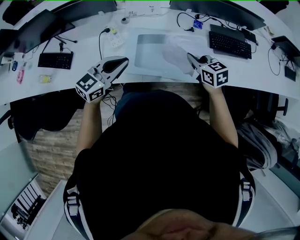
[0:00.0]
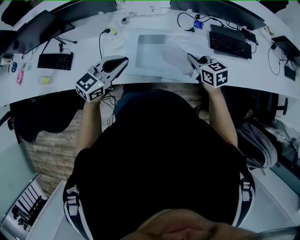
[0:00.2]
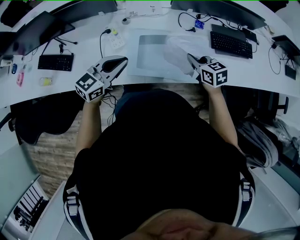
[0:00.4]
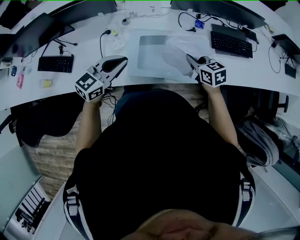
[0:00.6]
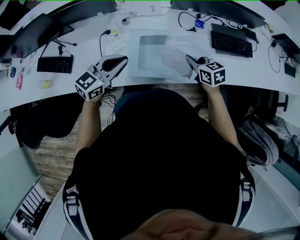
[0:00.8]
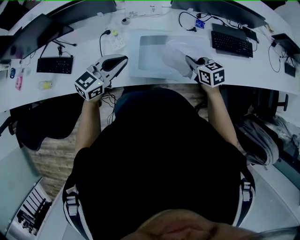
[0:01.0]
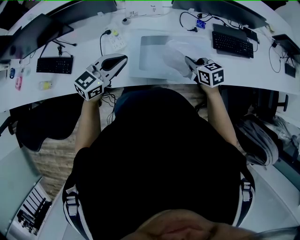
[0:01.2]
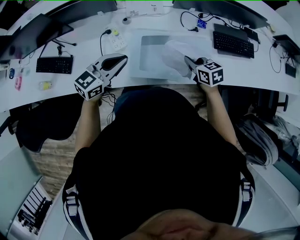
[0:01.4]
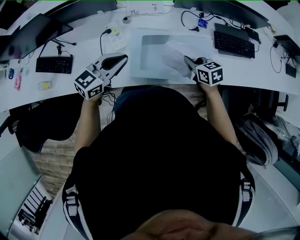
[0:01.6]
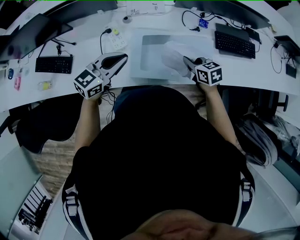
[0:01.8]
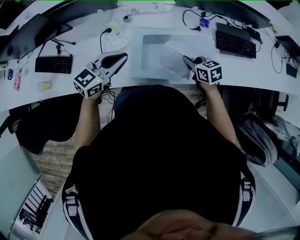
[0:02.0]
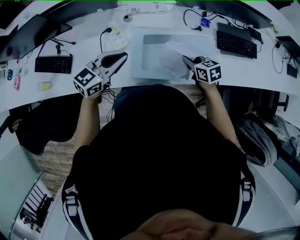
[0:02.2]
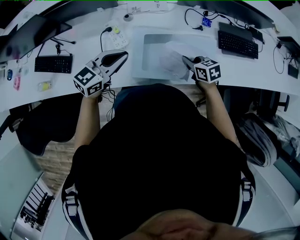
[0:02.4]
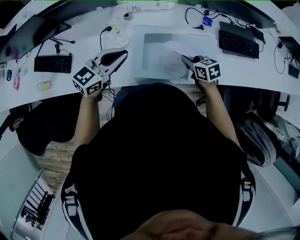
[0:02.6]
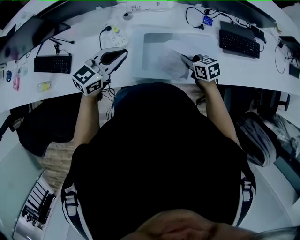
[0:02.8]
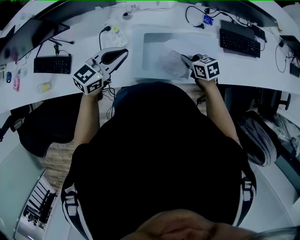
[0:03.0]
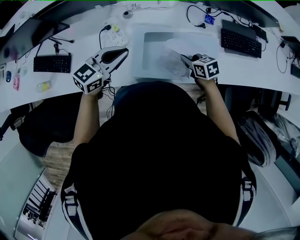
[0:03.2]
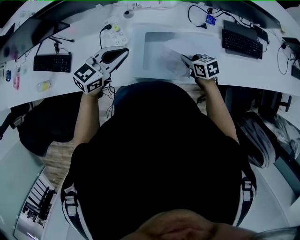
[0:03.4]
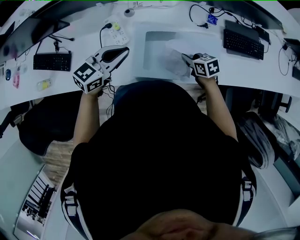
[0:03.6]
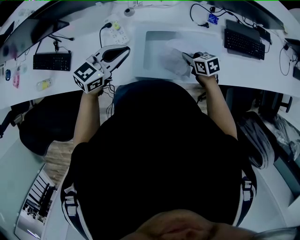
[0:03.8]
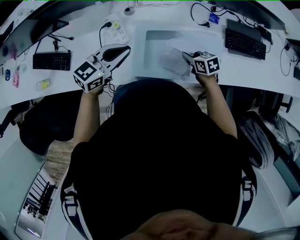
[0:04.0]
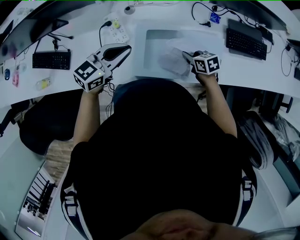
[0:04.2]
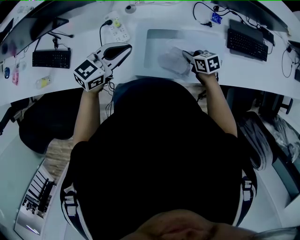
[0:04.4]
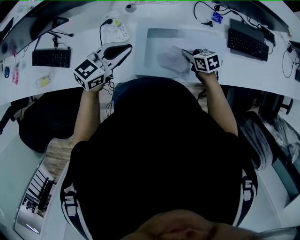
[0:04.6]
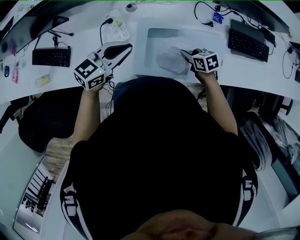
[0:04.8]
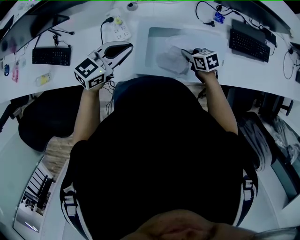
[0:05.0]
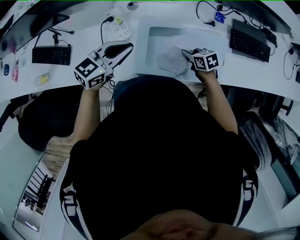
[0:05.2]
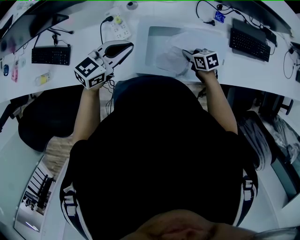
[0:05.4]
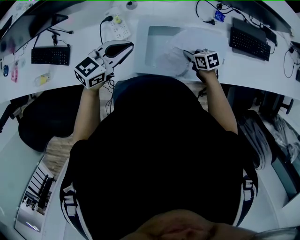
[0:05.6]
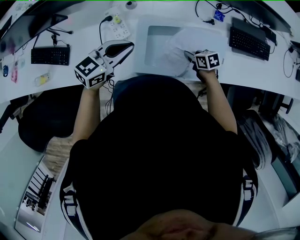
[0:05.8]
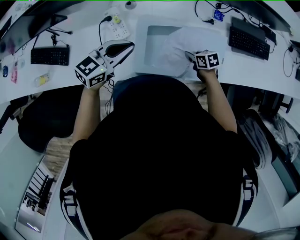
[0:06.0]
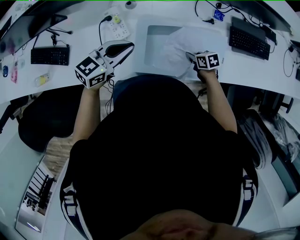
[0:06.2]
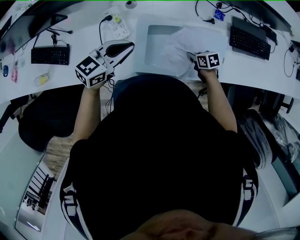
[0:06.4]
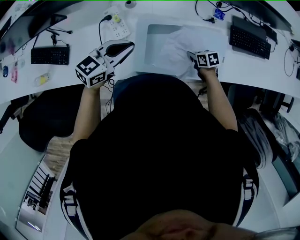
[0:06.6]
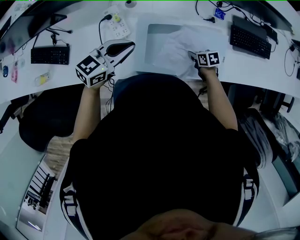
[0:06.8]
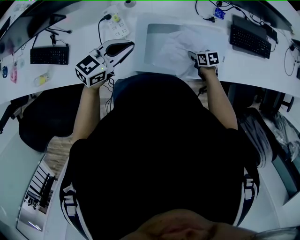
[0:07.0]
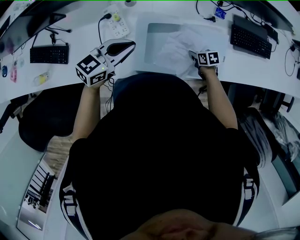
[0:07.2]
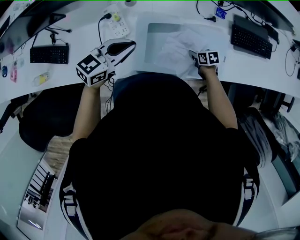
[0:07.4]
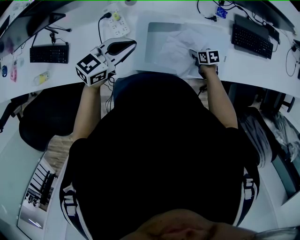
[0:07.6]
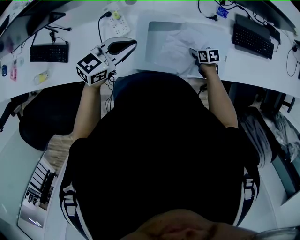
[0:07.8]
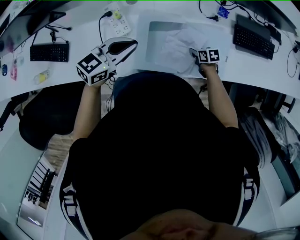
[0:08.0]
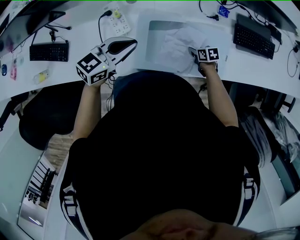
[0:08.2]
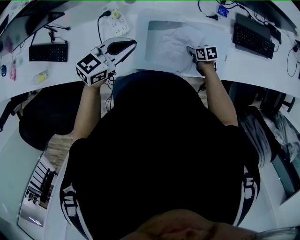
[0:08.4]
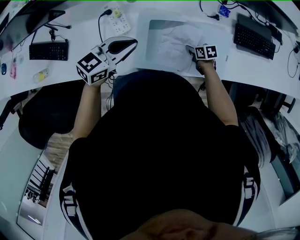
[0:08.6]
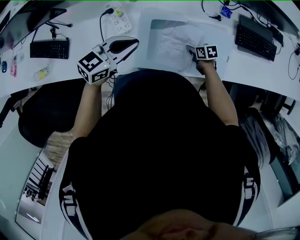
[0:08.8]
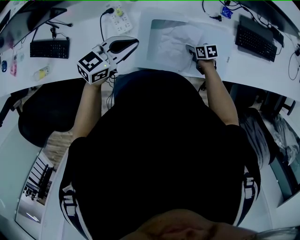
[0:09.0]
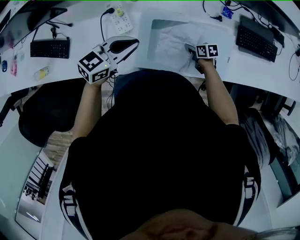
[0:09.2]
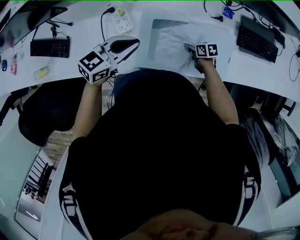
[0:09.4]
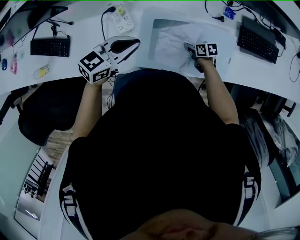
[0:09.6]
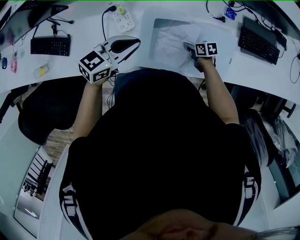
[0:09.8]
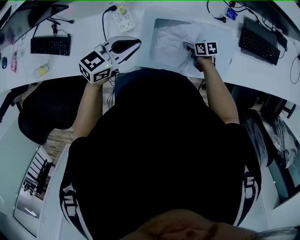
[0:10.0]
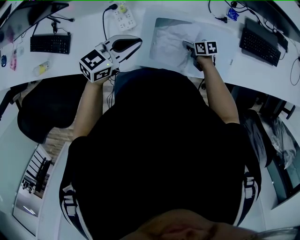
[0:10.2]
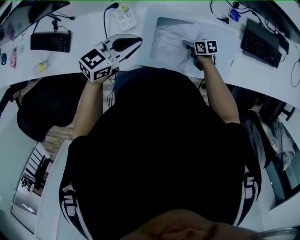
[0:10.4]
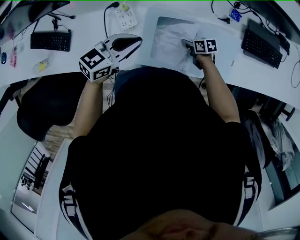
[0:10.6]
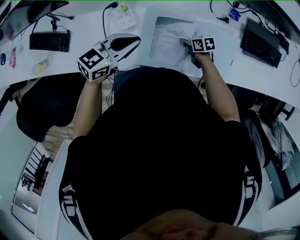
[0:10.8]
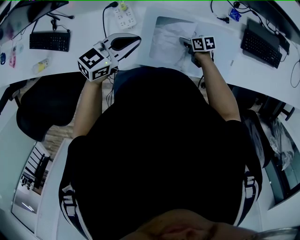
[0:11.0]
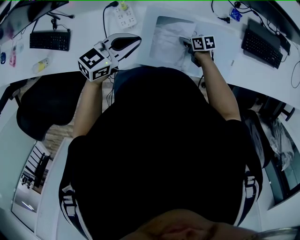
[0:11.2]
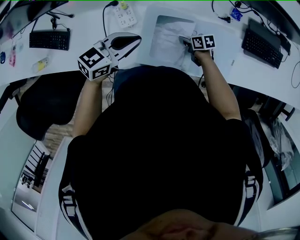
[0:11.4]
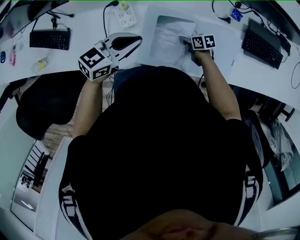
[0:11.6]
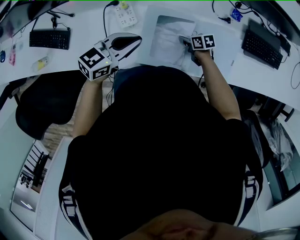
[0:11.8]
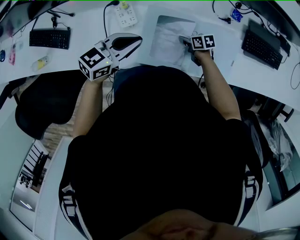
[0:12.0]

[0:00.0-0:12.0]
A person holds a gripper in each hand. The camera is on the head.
0.0 to 1.6 s: The left gripper travels to the left and forward by some 5 cm. Meanwhile the right gripper travels downward by about 5 cm.
1.6 to 3.0 s: The right gripper is displaced downward by roughly 5 cm; the left gripper is displaced forward by some 5 cm.
3.0 to 4.4 s: The right gripper travels downward by about 5 cm.
4.4 to 6.0 s: The right gripper travels downward by approximately 5 cm.
6.0 to 7.6 s: The right gripper moves downward, approximately 5 cm.
7.6 to 9.0 s: The grippers stay close to where they were, moving slightly.
9.0 to 10.4 s: The right gripper moves approximately 5 cm.
10.4 to 12.0 s: The grippers move only a little.

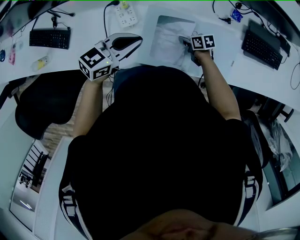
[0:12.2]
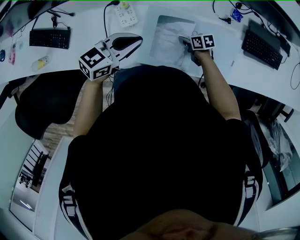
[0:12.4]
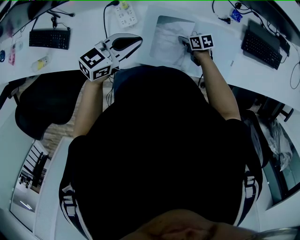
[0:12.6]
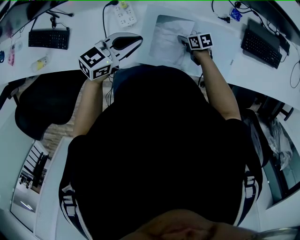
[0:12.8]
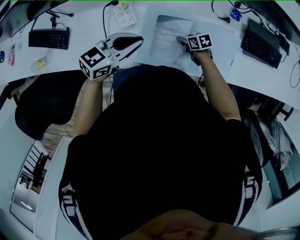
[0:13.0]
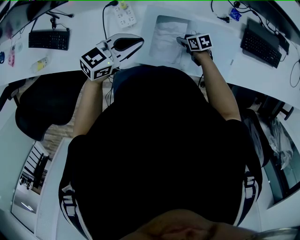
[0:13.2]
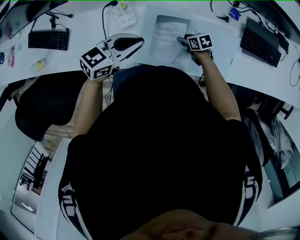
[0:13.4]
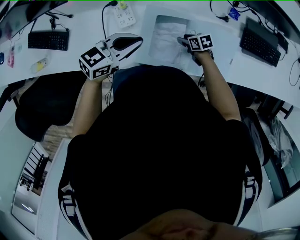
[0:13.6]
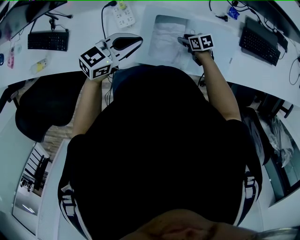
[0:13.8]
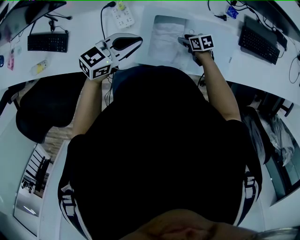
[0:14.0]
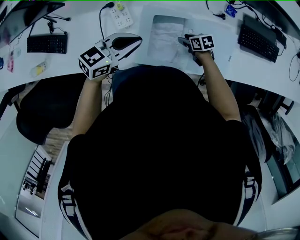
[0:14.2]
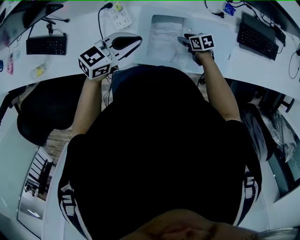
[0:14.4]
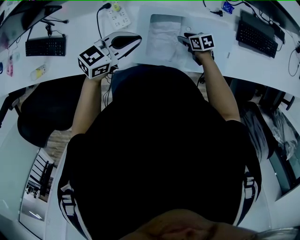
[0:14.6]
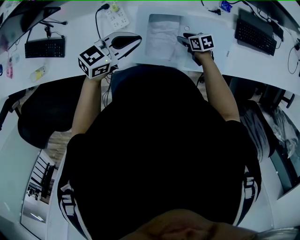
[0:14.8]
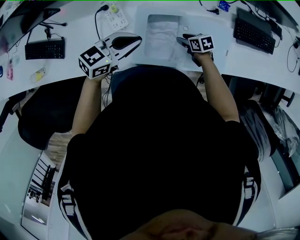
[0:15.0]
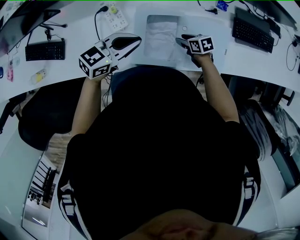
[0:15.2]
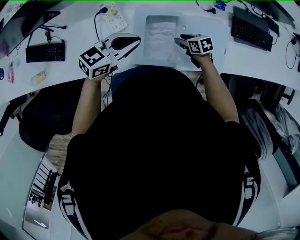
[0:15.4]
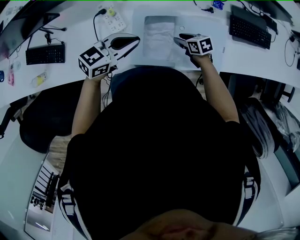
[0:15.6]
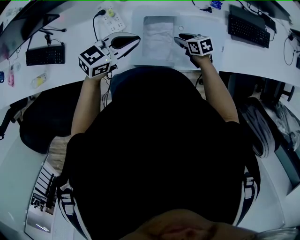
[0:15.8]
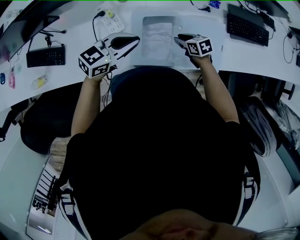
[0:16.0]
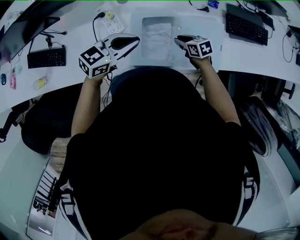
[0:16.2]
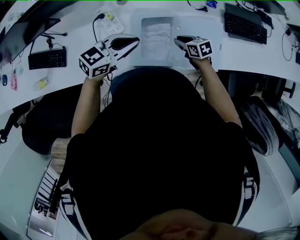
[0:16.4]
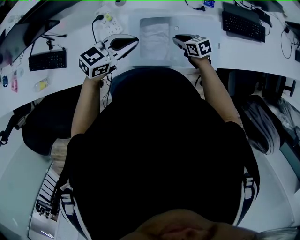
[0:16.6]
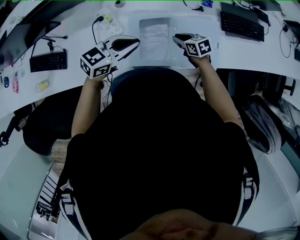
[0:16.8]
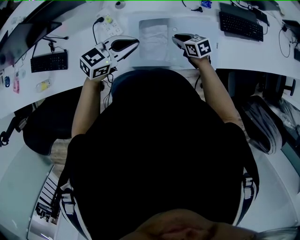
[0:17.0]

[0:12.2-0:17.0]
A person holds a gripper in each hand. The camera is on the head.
12.2 to 13.8 s: The right gripper opens up.
13.8 to 15.4 s: The right gripper heads upward, covering about 5 cm.
15.4 to 17.0 s: The right gripper goes about 10 cm upward, and closes up. Meanwhile the left gripper shifts by roughly 5 cm.

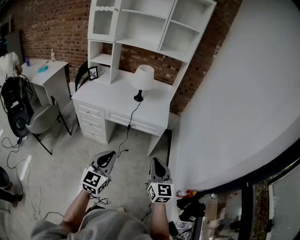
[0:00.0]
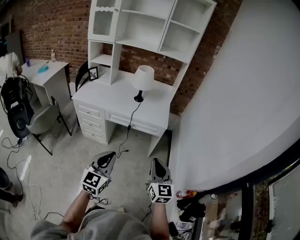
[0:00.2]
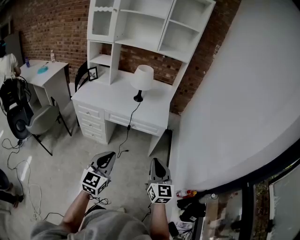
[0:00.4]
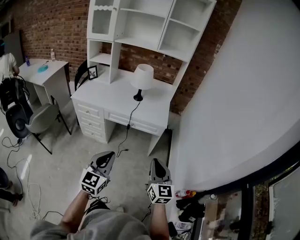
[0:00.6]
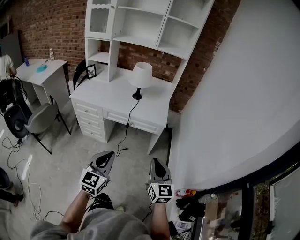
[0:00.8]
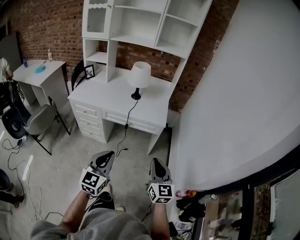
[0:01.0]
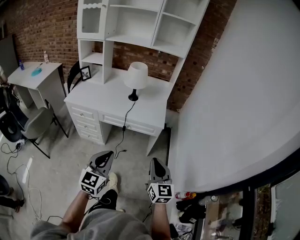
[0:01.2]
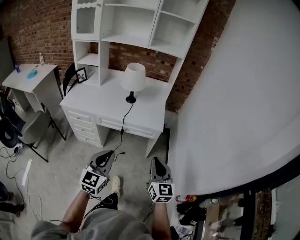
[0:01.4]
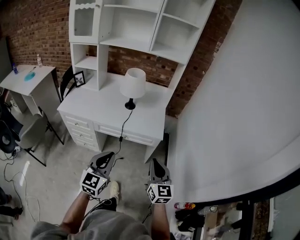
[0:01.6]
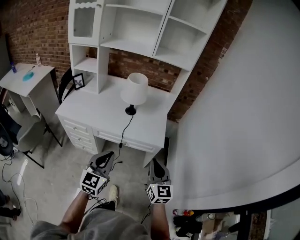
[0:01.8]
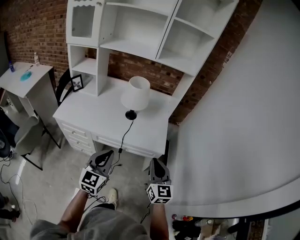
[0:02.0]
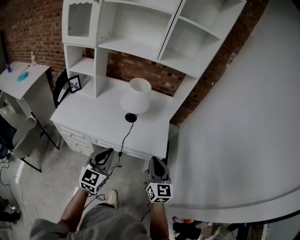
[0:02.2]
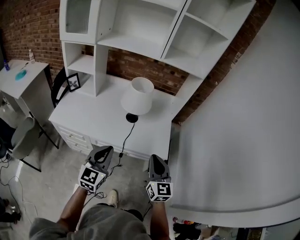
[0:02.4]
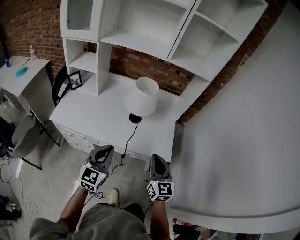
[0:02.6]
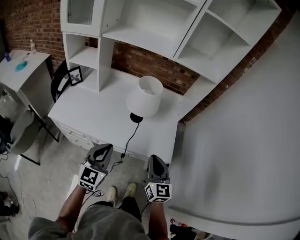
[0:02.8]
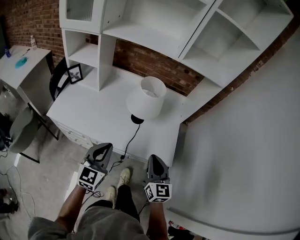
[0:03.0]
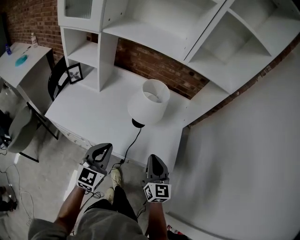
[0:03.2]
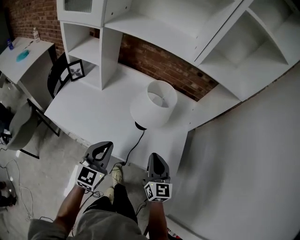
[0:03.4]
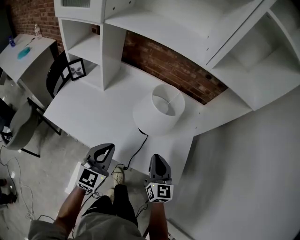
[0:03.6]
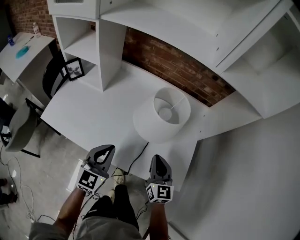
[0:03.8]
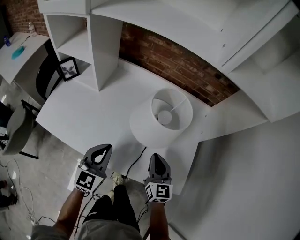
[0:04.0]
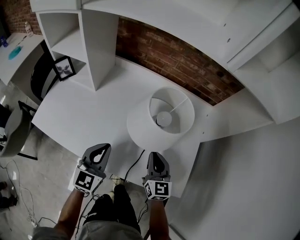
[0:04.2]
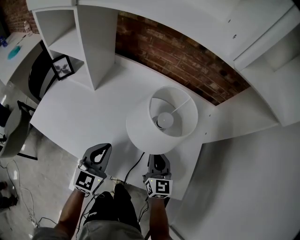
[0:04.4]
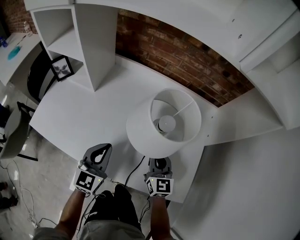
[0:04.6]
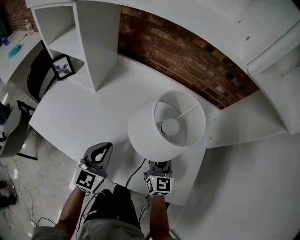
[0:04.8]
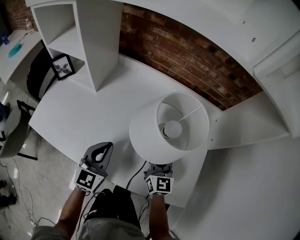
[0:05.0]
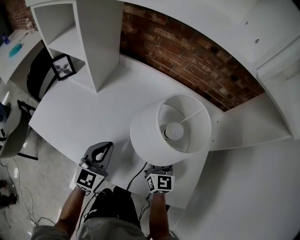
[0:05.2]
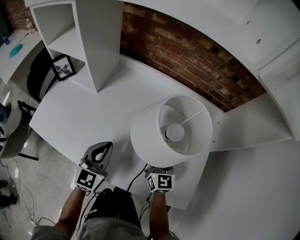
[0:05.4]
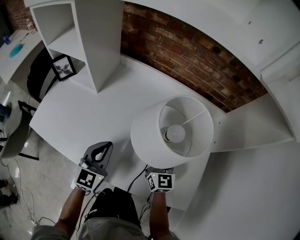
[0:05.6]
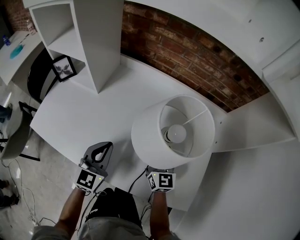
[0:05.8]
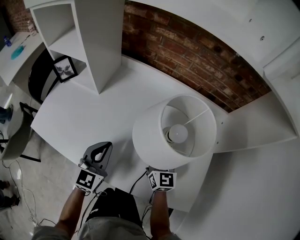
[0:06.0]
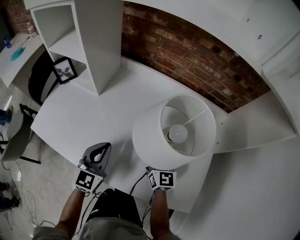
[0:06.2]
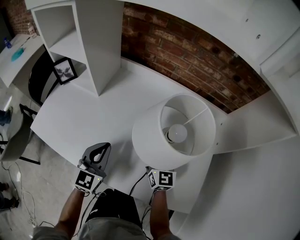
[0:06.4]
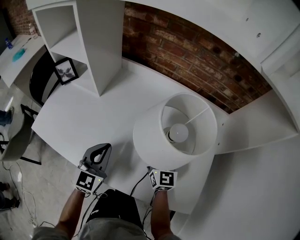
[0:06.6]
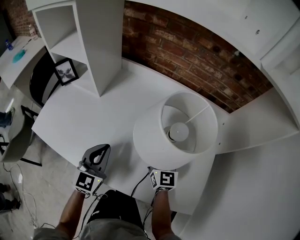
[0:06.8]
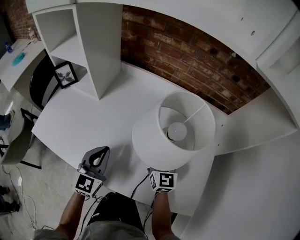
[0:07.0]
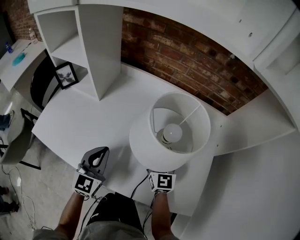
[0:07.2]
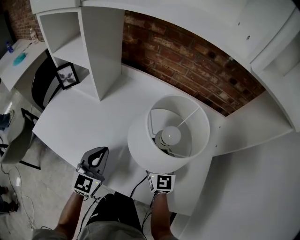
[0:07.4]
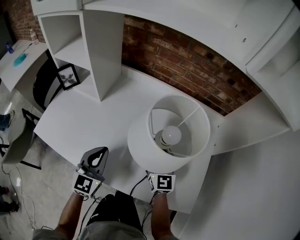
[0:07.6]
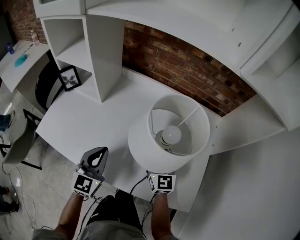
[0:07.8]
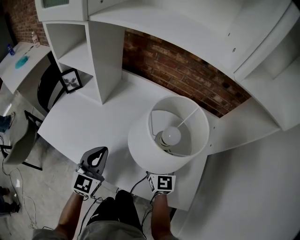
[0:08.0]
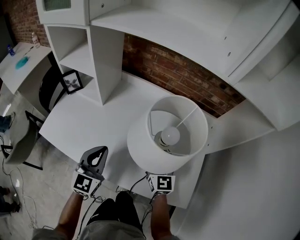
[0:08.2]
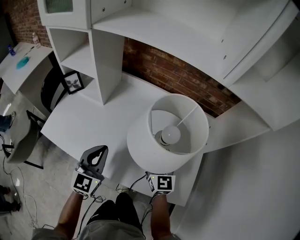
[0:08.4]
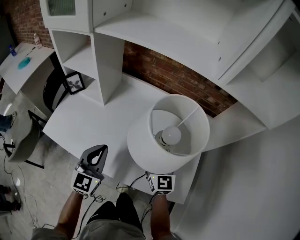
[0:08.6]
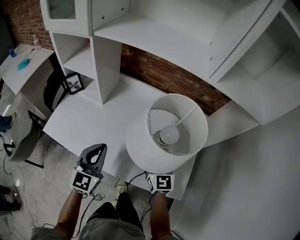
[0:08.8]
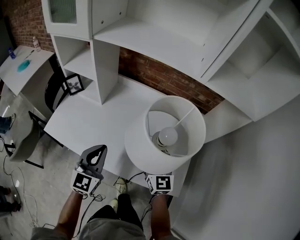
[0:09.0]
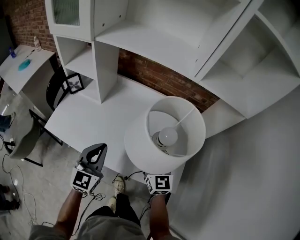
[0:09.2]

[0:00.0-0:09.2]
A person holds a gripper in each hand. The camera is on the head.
0.0 to 1.6 s: The two grippers go roughly 15 cm forward.
1.6 to 3.0 s: The two grippers go approximately 30 cm forward.
3.0 to 4.6 s: The two grippers go about 30 cm forward and downward.
4.6 to 6.2 s: The right gripper moves forward, about 5 cm, and opens, while the left gripper changes place by some 5 cm.
6.2 to 7.6 s: There are only small adjustments of the grippers.
7.6 to 9.2 s: Both grippers travel together upward and backward, about 20 cm.
